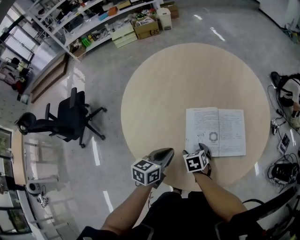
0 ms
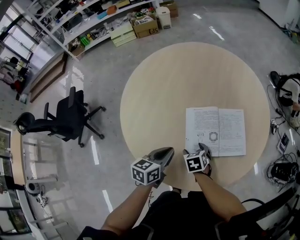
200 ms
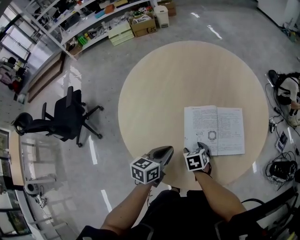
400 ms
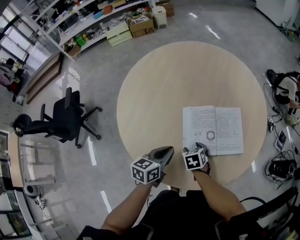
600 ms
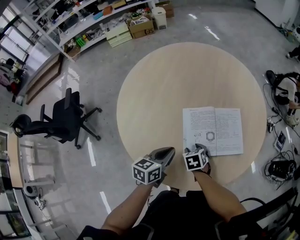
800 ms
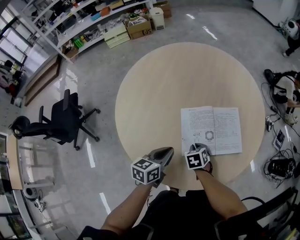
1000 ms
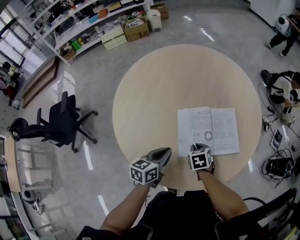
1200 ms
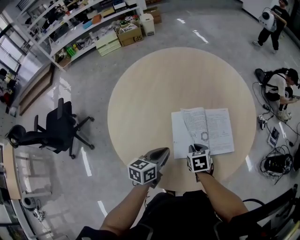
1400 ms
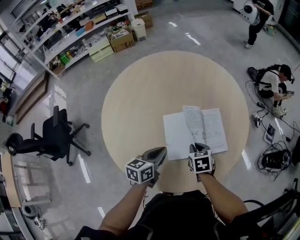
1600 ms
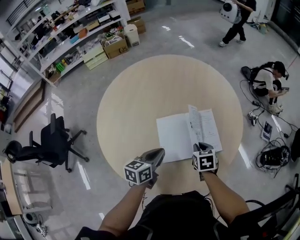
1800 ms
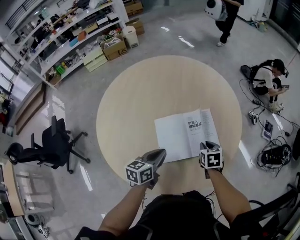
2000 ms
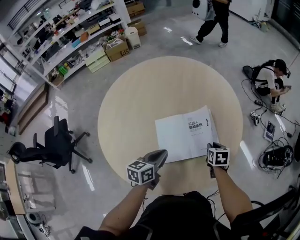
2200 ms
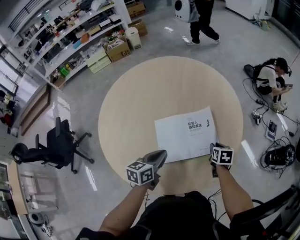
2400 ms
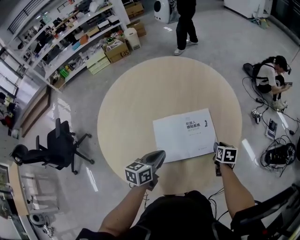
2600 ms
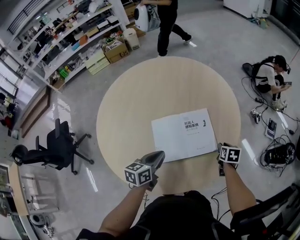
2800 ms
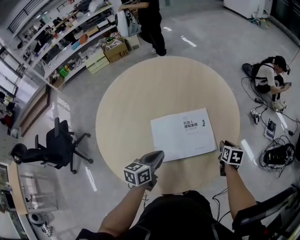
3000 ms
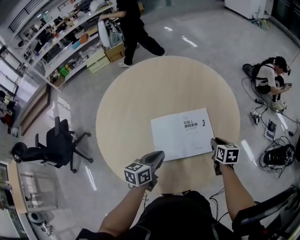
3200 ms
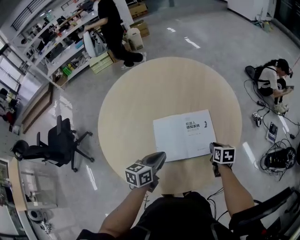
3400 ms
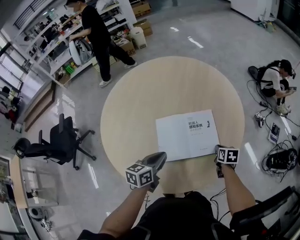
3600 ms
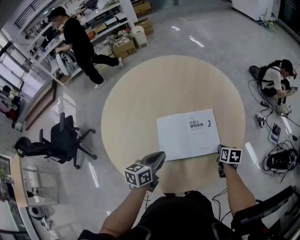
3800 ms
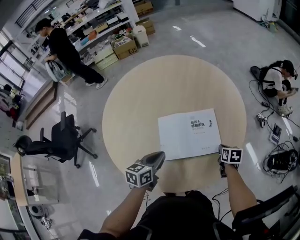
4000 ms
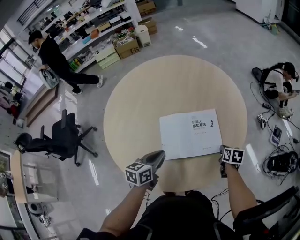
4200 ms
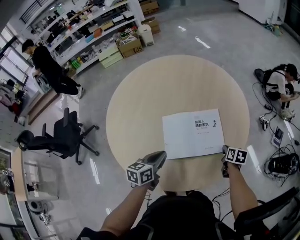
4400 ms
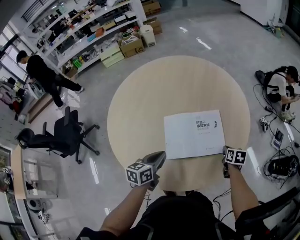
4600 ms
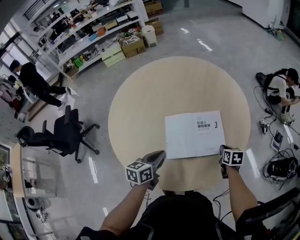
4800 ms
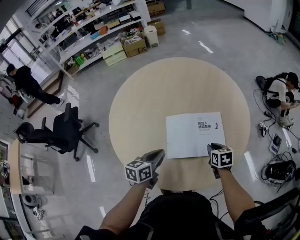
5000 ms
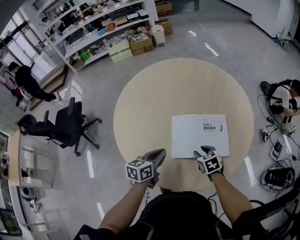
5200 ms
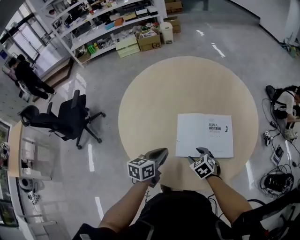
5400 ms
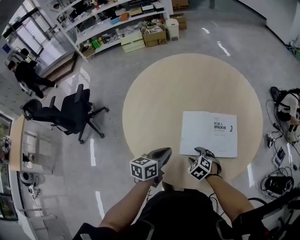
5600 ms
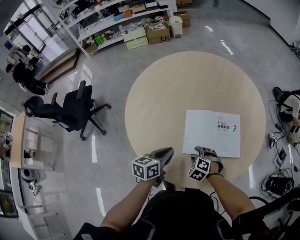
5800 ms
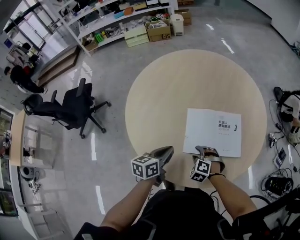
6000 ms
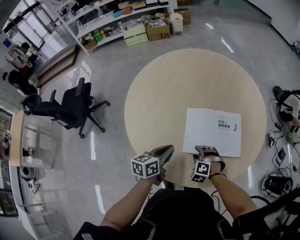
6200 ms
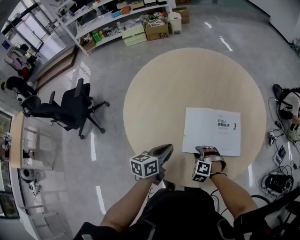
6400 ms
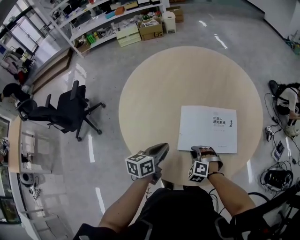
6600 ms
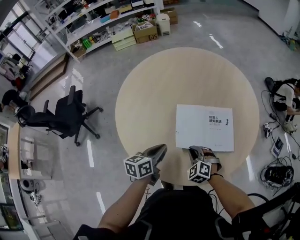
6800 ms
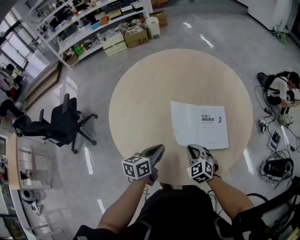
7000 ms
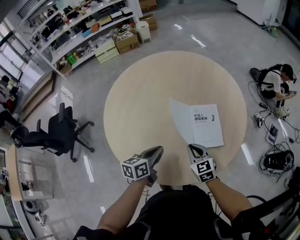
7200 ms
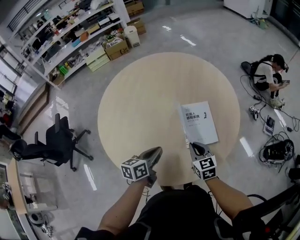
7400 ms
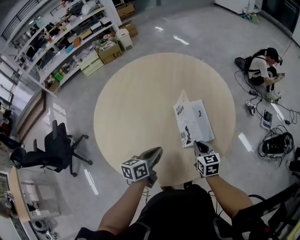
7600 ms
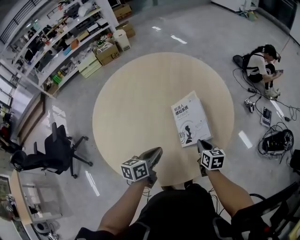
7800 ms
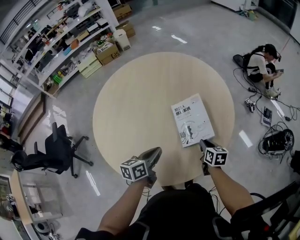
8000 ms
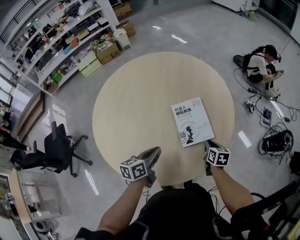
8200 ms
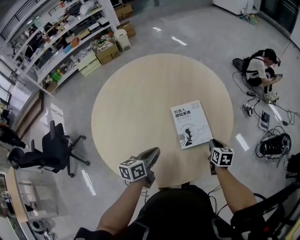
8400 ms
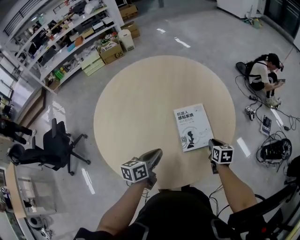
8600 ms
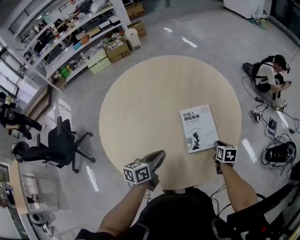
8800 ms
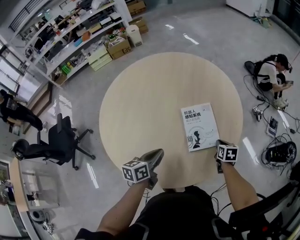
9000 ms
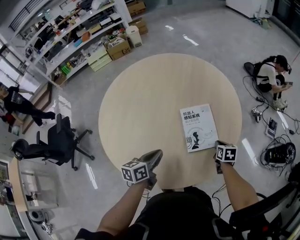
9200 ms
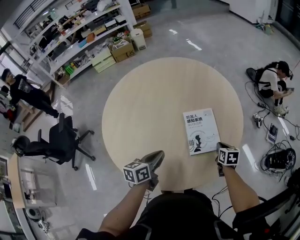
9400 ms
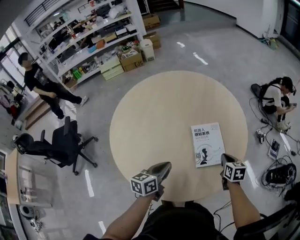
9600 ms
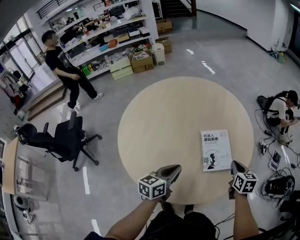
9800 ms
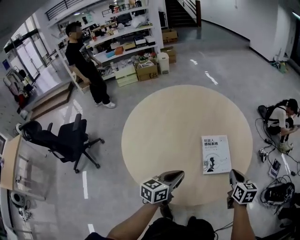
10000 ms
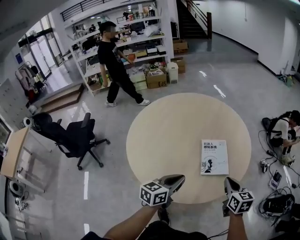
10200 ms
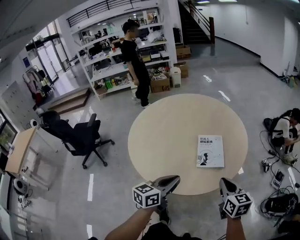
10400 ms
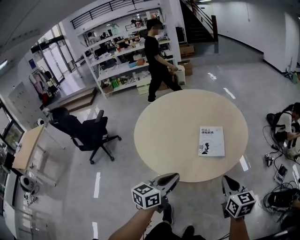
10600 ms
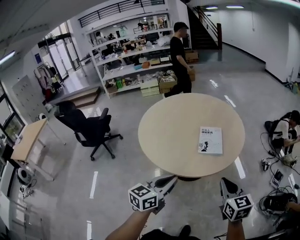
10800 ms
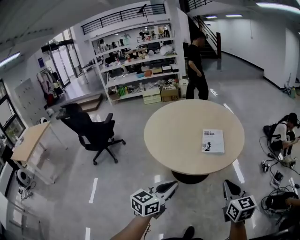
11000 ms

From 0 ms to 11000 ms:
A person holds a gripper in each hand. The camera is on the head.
From 0 ms to 1600 ms: The right gripper moves to the right and upward, approximately 10 cm, and closes up. The left gripper shifts by some 5 cm.
From 1600 ms to 3200 ms: The right gripper moves to the right and forward, about 20 cm, and swivels approximately 20 degrees. Meanwhile the left gripper travels to the right by some 5 cm.
From 3200 ms to 4800 ms: The left gripper ends up about 5 cm from where it was.
From 4800 ms to 6200 ms: The right gripper moves to the left, about 25 cm, rolls counterclockwise, seen from behind, by roughly 90 degrees, and opens up. The left gripper moves to the left, about 5 cm.
From 6200 ms to 7800 ms: The left gripper goes approximately 10 cm to the right. The right gripper travels to the right by approximately 20 cm, rolls clockwise, seen from behind, by some 100 degrees, and closes its fingers.
From 7800 ms to 9400 ms: The right gripper moves to the right and forward, some 10 cm.
From 9400 ms to 11000 ms: The grippers both shift backward and upward by roughly 50 cm. The left gripper turns by some 30 degrees. The right gripper tilts its fingers some 30 degrees upward.

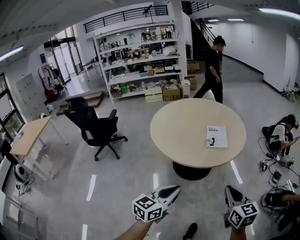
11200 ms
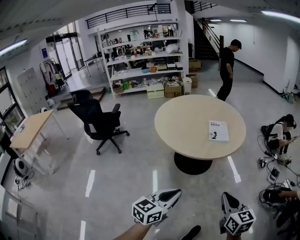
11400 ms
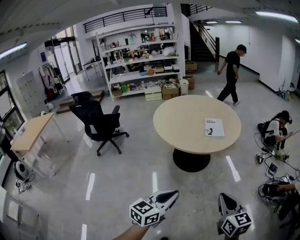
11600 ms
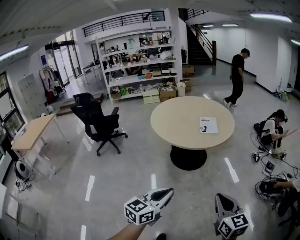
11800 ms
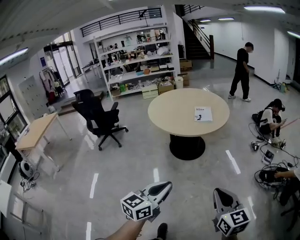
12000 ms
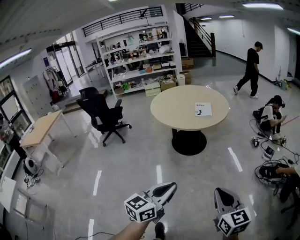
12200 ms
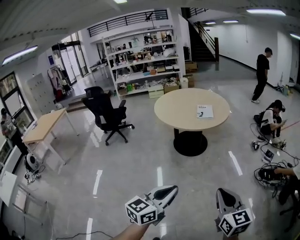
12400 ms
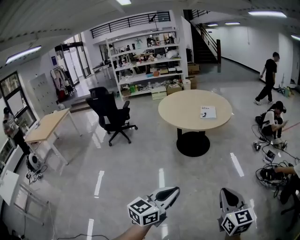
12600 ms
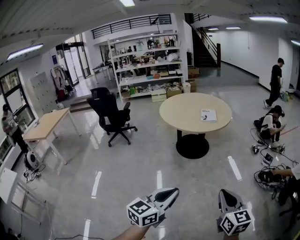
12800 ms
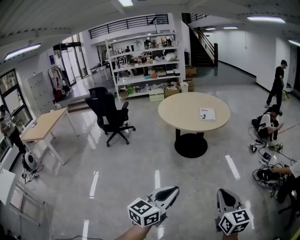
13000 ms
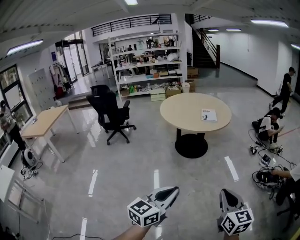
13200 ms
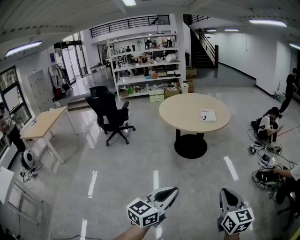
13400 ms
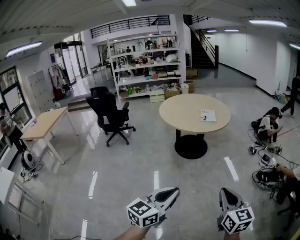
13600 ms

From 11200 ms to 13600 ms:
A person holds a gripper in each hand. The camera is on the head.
From 11200 ms to 12400 ms: Both grippers are carried backward, roughly 50 cm.
From 12400 ms to 13600 ms: The right gripper travels backward by approximately 5 cm. Meanwhile the left gripper is displaced backward and to the left by some 10 cm.

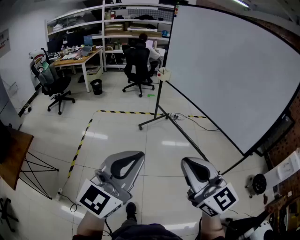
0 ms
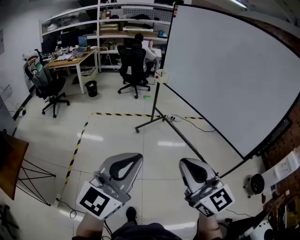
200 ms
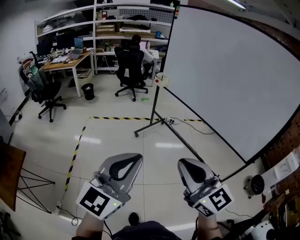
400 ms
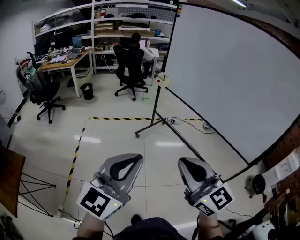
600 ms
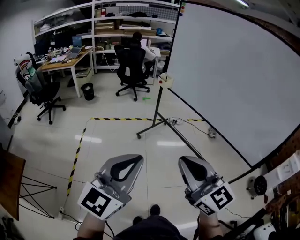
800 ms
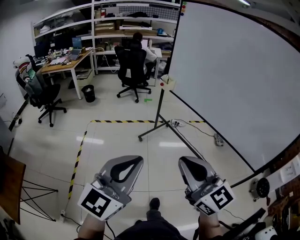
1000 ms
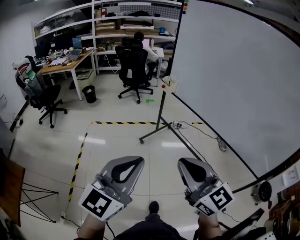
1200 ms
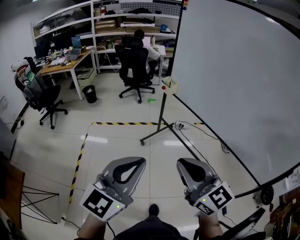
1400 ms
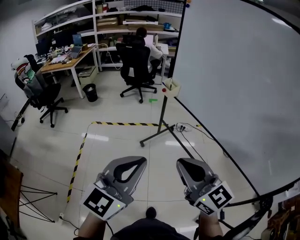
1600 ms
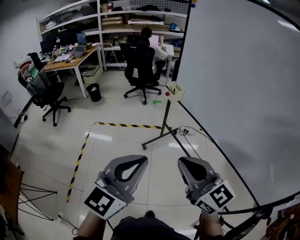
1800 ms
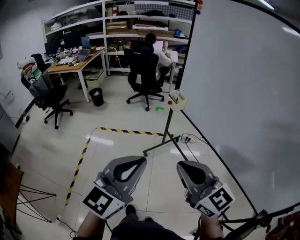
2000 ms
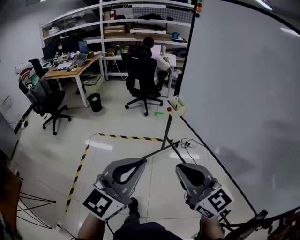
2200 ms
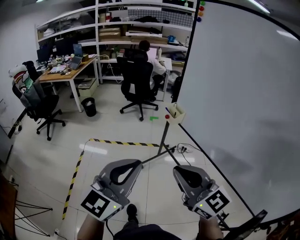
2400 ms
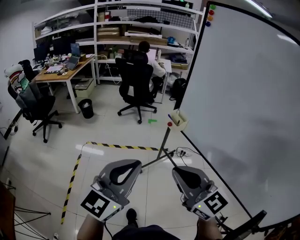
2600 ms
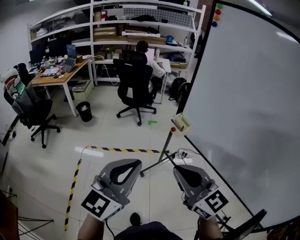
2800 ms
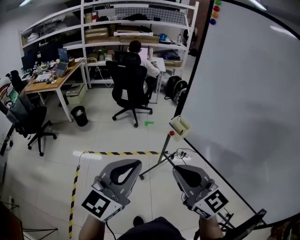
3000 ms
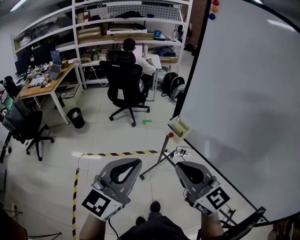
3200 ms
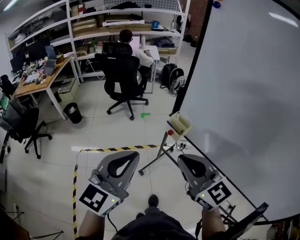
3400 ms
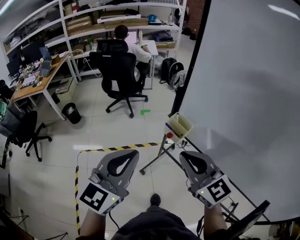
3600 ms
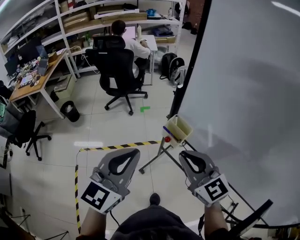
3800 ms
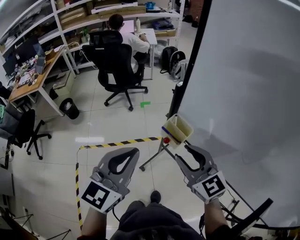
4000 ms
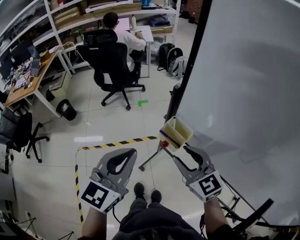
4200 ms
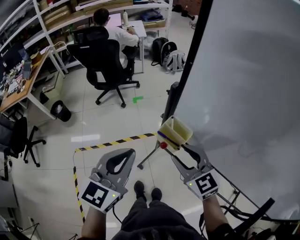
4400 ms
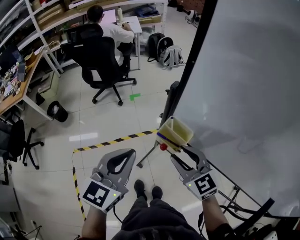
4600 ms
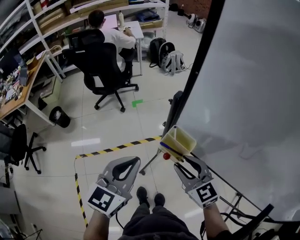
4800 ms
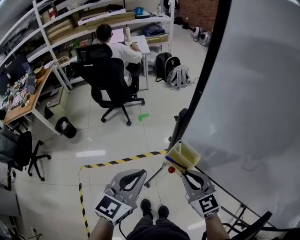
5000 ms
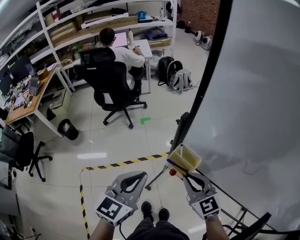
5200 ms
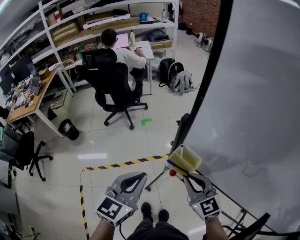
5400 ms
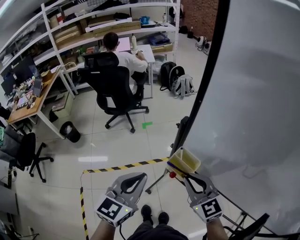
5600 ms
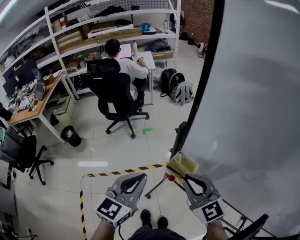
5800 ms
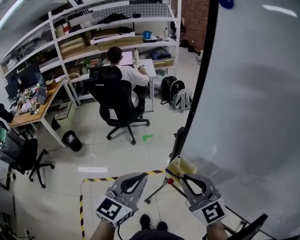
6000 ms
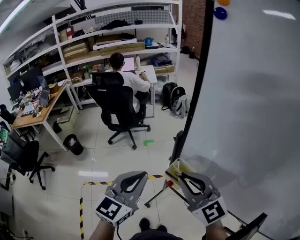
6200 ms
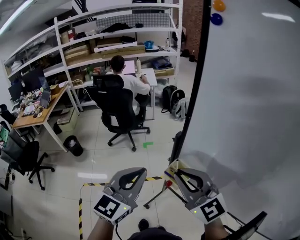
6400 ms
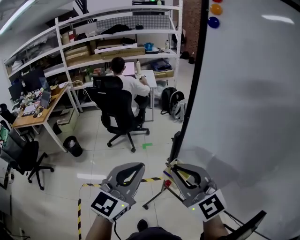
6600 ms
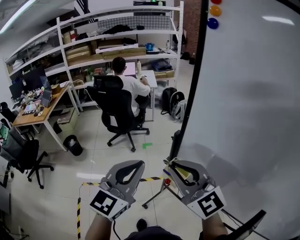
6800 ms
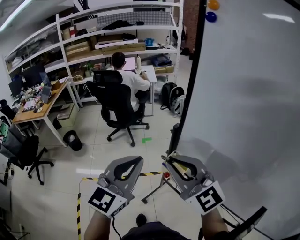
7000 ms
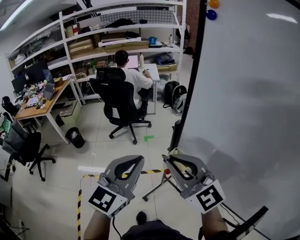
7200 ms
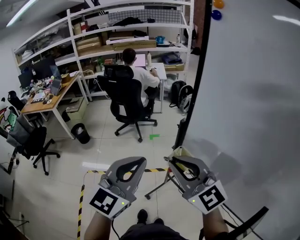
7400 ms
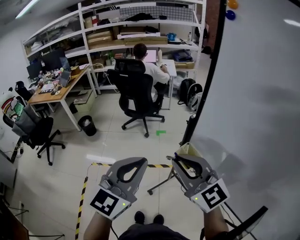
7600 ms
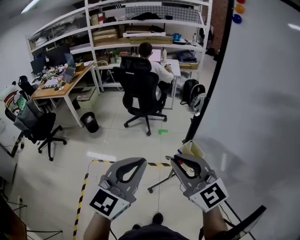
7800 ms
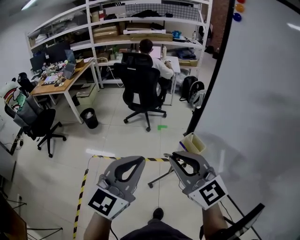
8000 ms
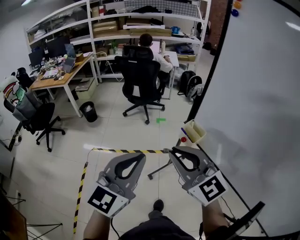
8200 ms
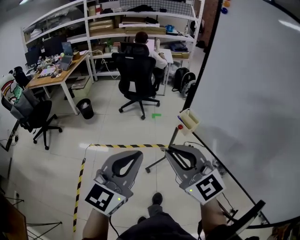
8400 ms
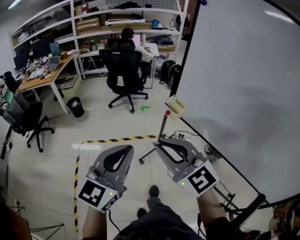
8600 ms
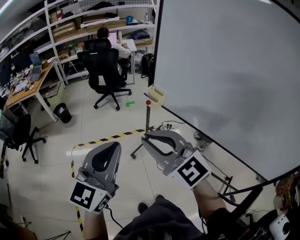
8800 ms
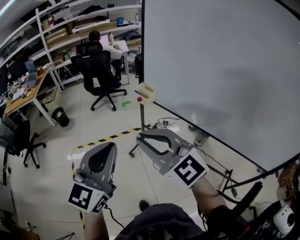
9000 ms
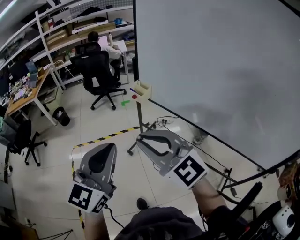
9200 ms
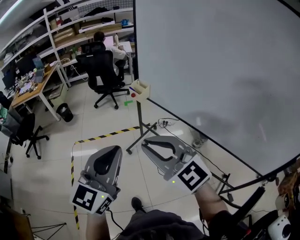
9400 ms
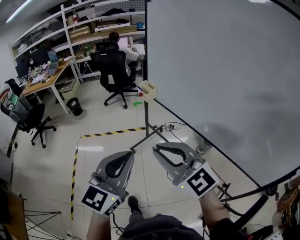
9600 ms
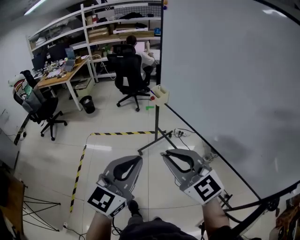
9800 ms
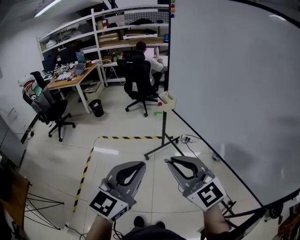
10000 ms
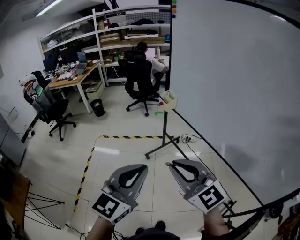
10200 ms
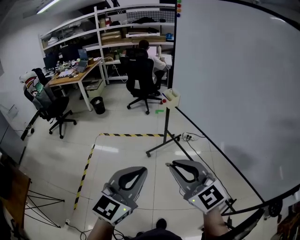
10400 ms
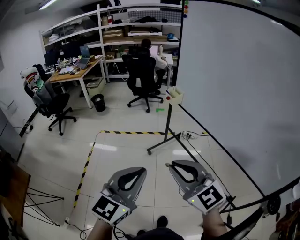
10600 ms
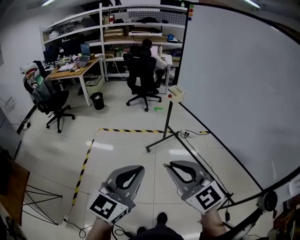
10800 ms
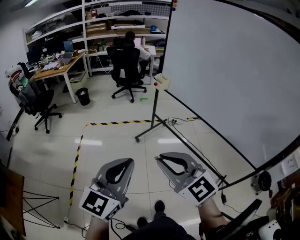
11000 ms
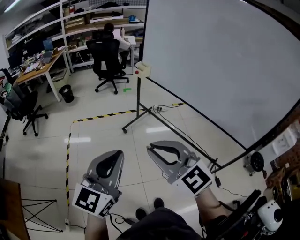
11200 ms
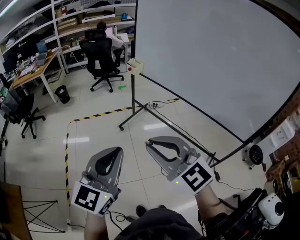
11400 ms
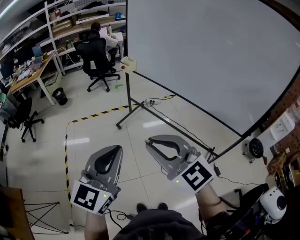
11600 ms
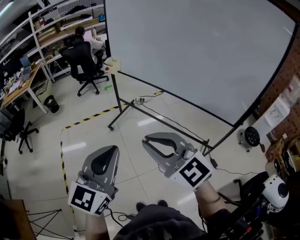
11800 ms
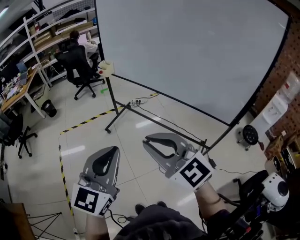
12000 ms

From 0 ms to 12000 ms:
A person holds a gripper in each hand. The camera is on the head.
From 0 ms to 1600 ms: The pair of grippers is taken forward, about 40 cm.
From 1600 ms to 3000 ms: The two grippers go roughly 35 cm forward.
From 3000 ms to 4400 ms: The right gripper shifts about 35 cm forward and downward, rotates approximately 20 degrees, and opens up. Meanwhile the left gripper heads forward, covering approximately 30 cm.
From 4400 ms to 6000 ms: The right gripper shifts about 10 cm upward, and closes its fingers.
From 6000 ms to 7600 ms: The right gripper heads upward, backward and to the left, covering about 10 cm. The left gripper goes approximately 15 cm backward and upward.
From 7600 ms to 9000 ms: The two grippers go about 30 cm backward.
From 9000 ms to 10400 ms: The left gripper moves backward, roughly 25 cm; the right gripper heads backward and to the right, covering roughly 25 cm.
From 10400 ms to 12000 ms: The grippers both shift backward by some 20 cm.
